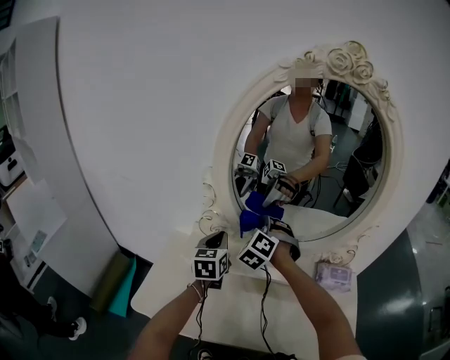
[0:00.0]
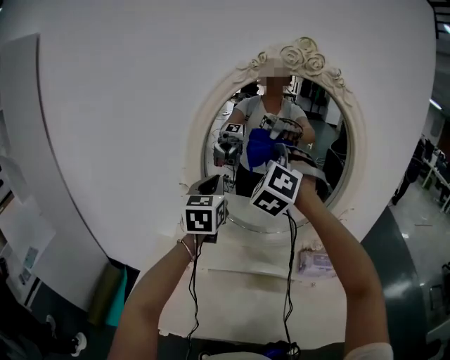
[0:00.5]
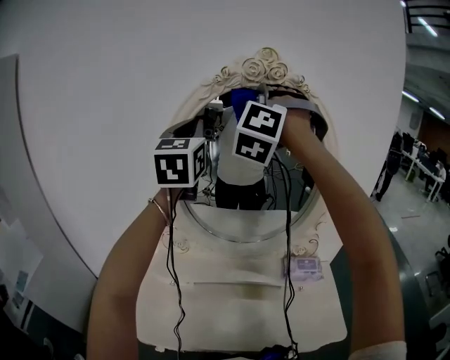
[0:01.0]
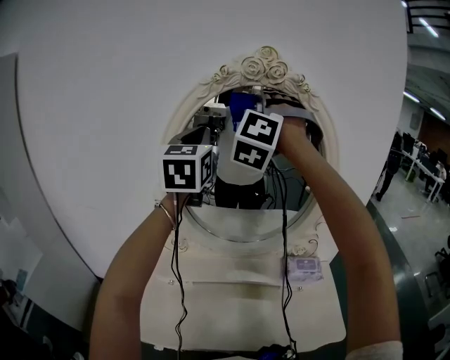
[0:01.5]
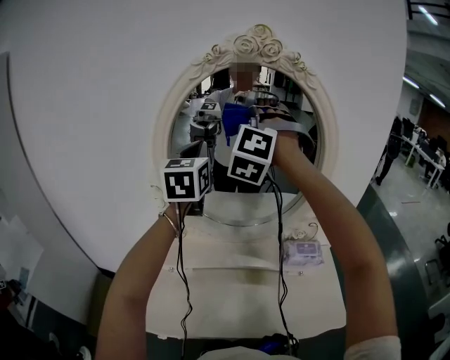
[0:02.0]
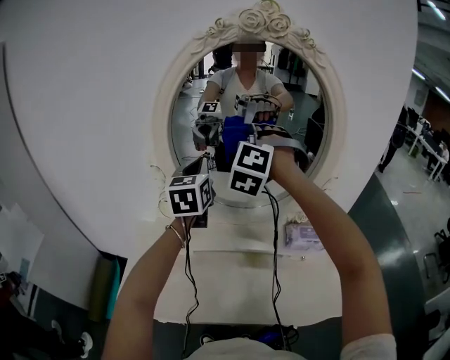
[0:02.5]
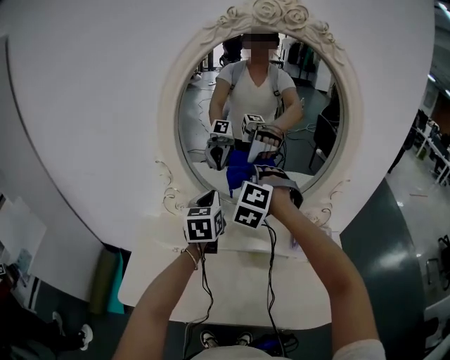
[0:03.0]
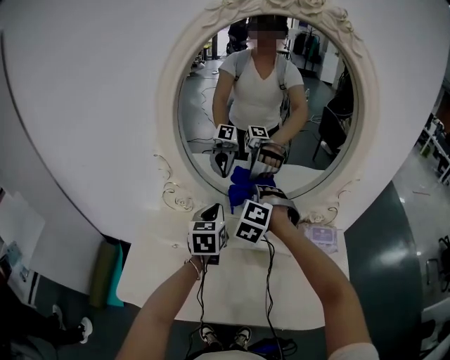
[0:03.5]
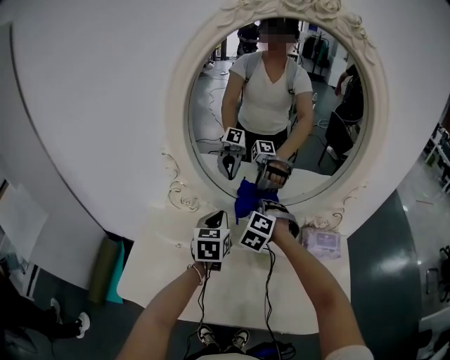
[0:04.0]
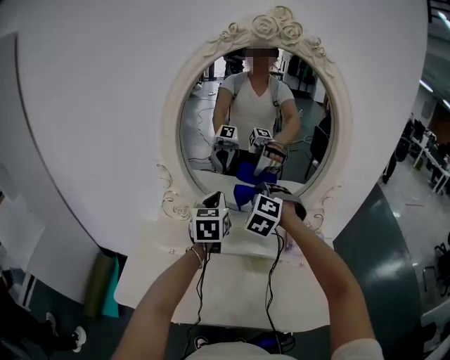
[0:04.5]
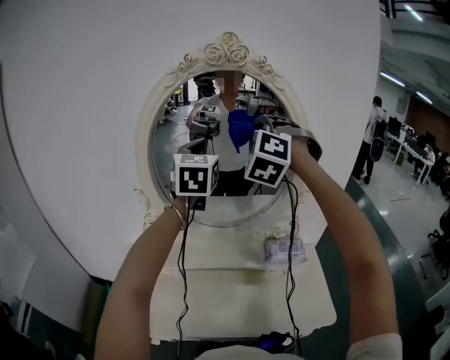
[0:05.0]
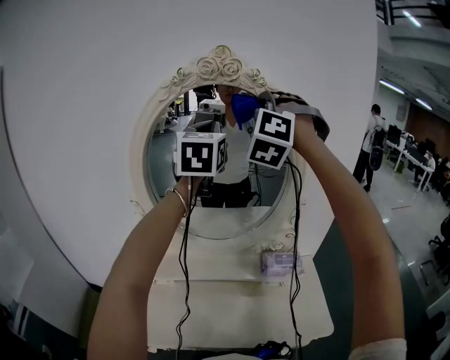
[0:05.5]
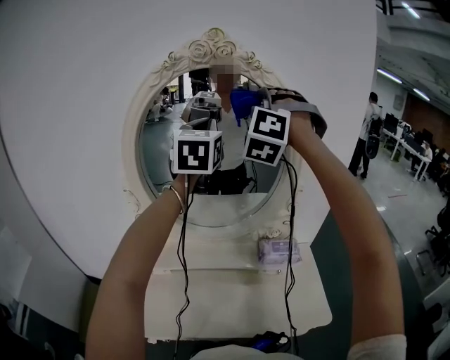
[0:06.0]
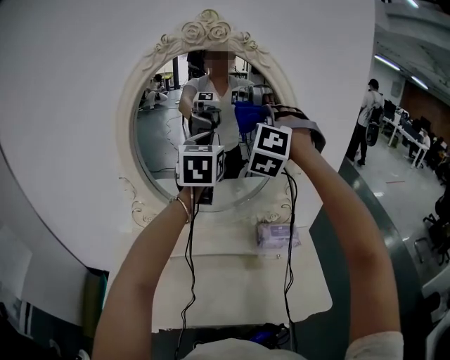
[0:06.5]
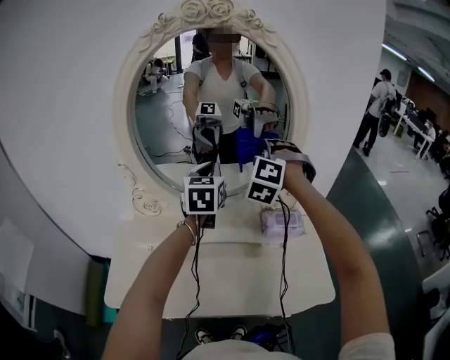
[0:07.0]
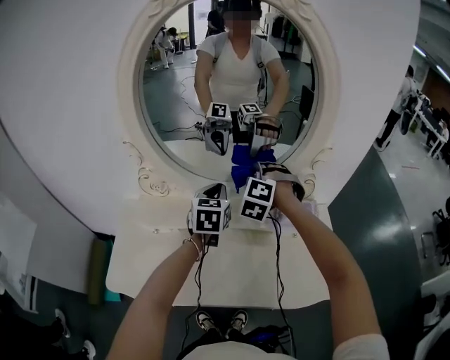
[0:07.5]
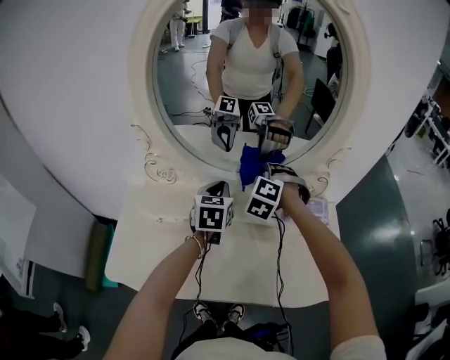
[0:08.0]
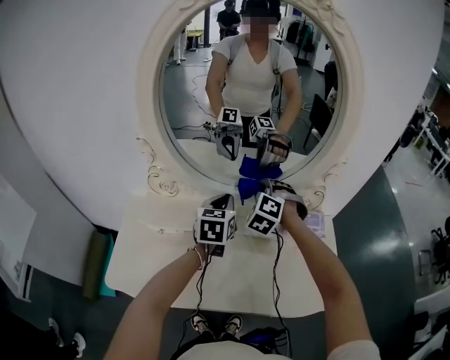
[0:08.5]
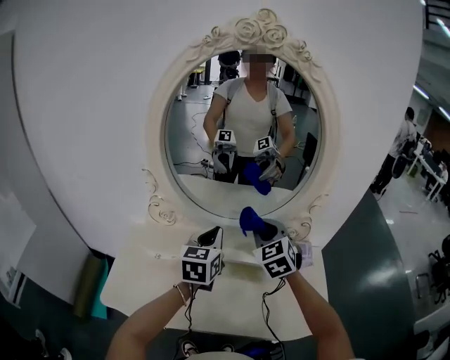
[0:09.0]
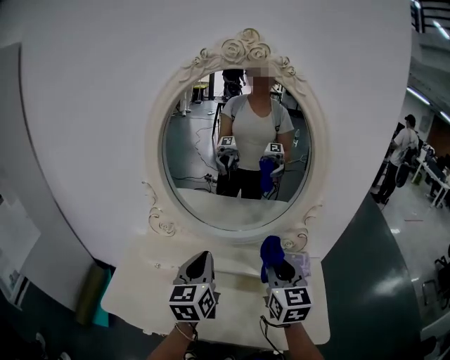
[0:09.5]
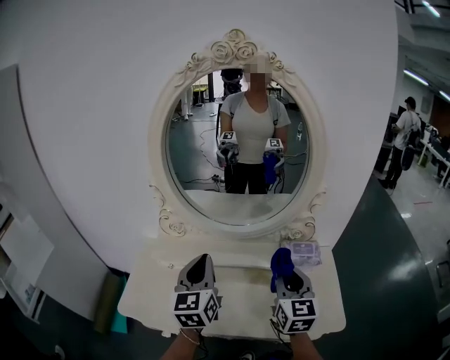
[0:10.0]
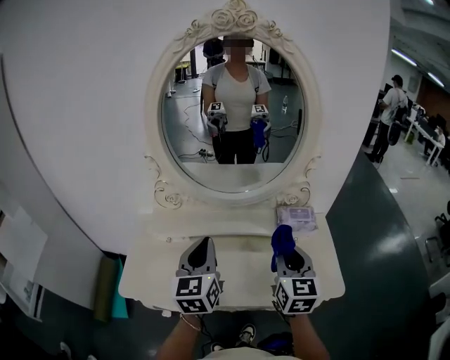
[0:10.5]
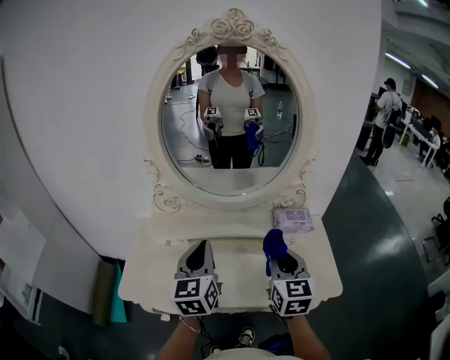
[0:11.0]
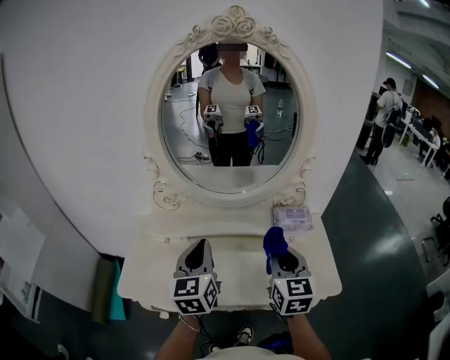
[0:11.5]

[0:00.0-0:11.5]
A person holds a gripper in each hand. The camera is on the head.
0:00.0 to 0:02.0: Both grippers travel together upward, about 30 cm. The left gripper changes its angle by approximately 20 degrees; the right gripper turns by about 30 degrees.
0:02.0 to 0:04.0: Both grippers travel together downward, roughly 40 cm. The left gripper turns by approximately 30 degrees. The right gripper tips its fingers downward by some 40 degrees.
0:04.0 to 0:06.0: Both grippers travel together upward, about 40 cm. The right gripper tips its fingers upward by some 40 degrees. The left gripper turns by some 30 degrees.
0:06.0 to 0:07.5: Both grippers travel together downward, about 40 cm. The left gripper changes its angle by roughly 30 degrees, while the right gripper angles its fingers downward, by approximately 40 degrees.
0:07.5 to 0:09.5: The right gripper shifts about 20 cm backward, upward and to the right, and rolls clockwise, seen from behind, by approximately 70 degrees, while the left gripper moves backward and upward, some 15 cm, and turns by some 20 degrees.
0:09.5 to 0:11.5: The grippers both shift backward by roughly 10 cm.

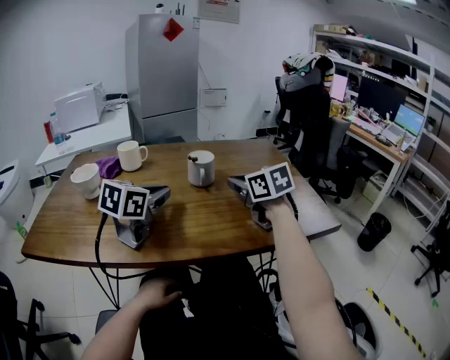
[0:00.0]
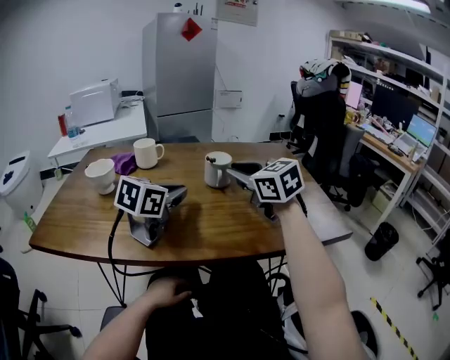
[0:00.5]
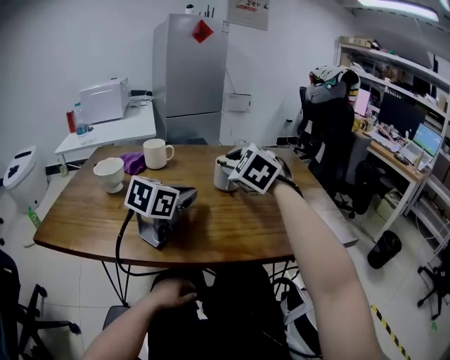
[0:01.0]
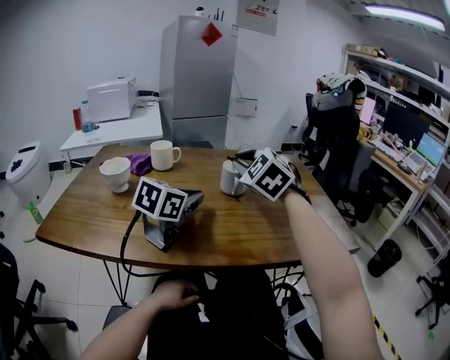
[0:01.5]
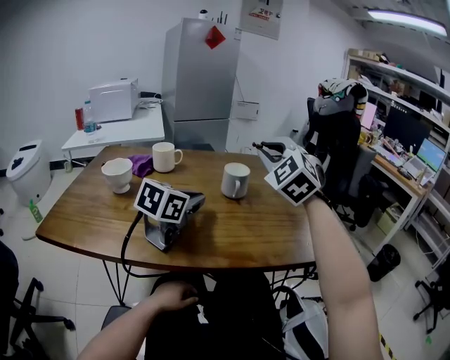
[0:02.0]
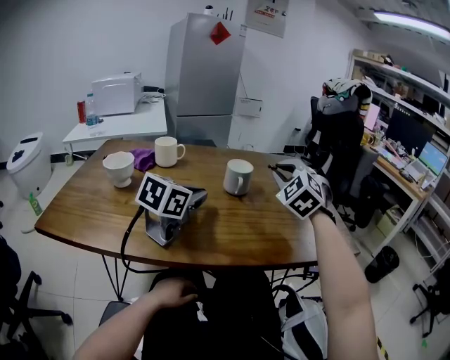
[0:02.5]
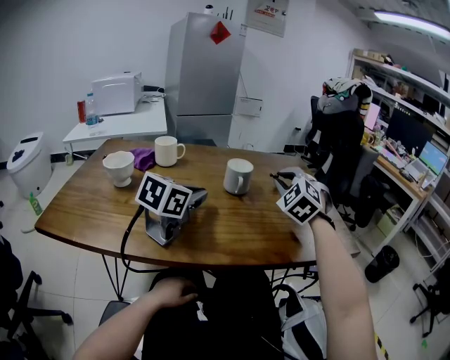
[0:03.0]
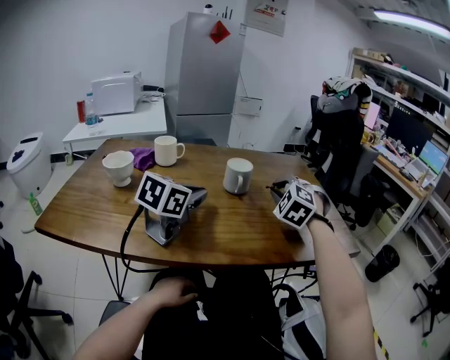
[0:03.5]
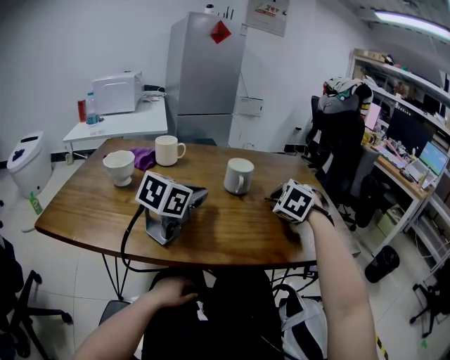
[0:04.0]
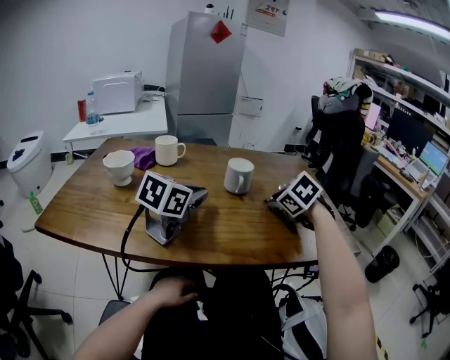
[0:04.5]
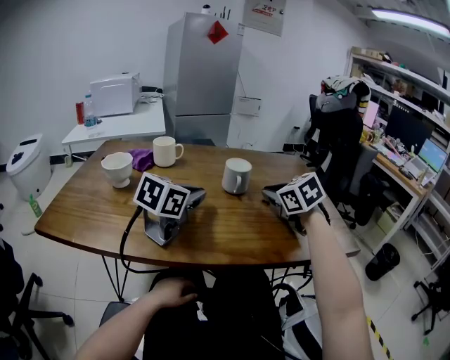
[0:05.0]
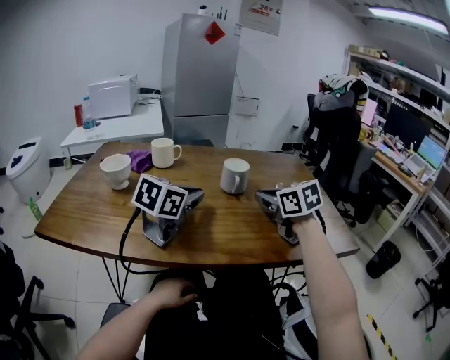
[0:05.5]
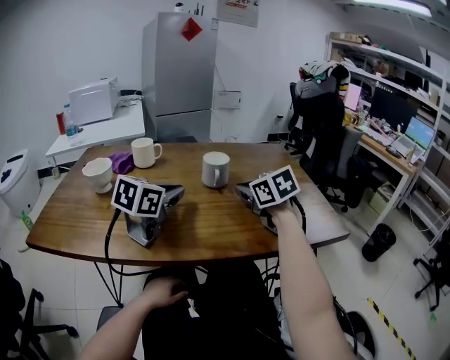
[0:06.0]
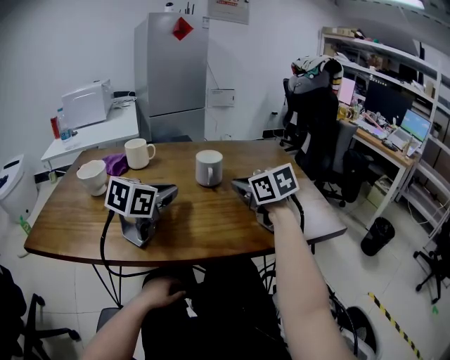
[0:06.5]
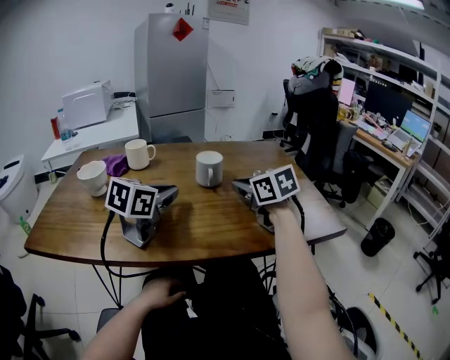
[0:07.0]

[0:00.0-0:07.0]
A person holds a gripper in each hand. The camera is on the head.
0:00.0 to 0:02.0: The right gripper moves upward, about 15 cm, and rolls counterclockwise, seen from behind, by roughly 60 degrees.
0:02.0 to 0:03.5: The right gripper moves downward and to the right, some 15 cm, and changes its angle by some 20 degrees.
0:03.5 to 0:05.0: The right gripper twists approximately 40 degrees clockwise, seen from behind.
0:05.0 to 0:07.0: The grippers make only small movements.

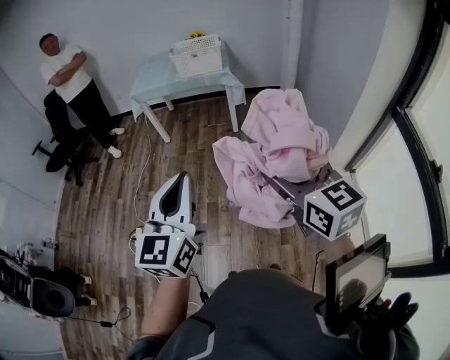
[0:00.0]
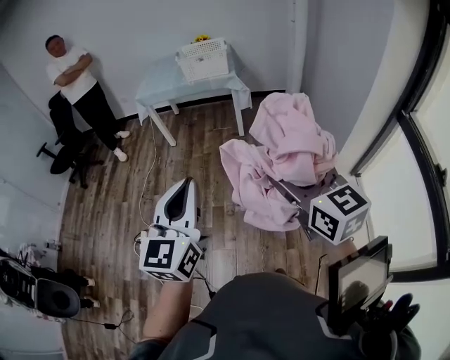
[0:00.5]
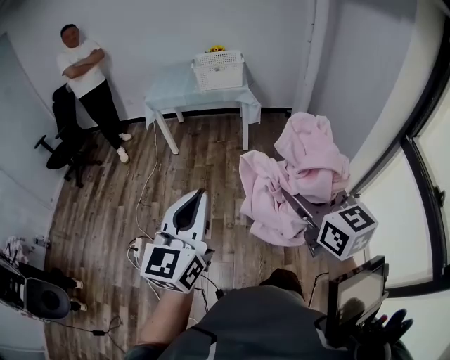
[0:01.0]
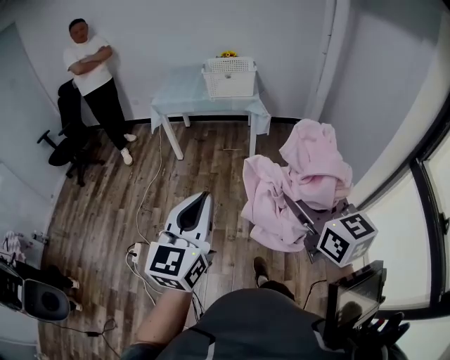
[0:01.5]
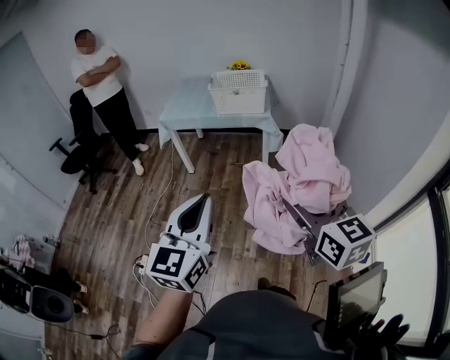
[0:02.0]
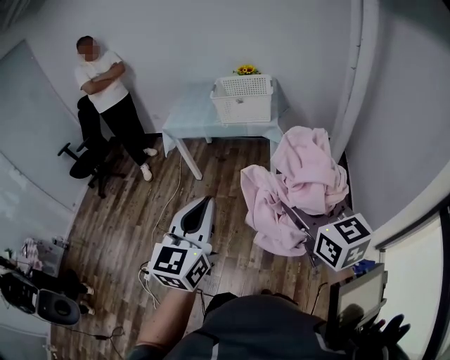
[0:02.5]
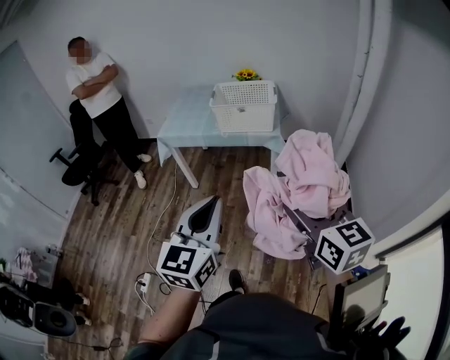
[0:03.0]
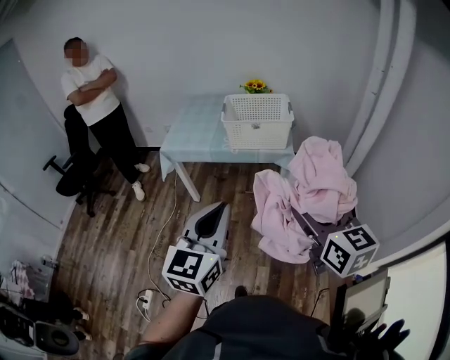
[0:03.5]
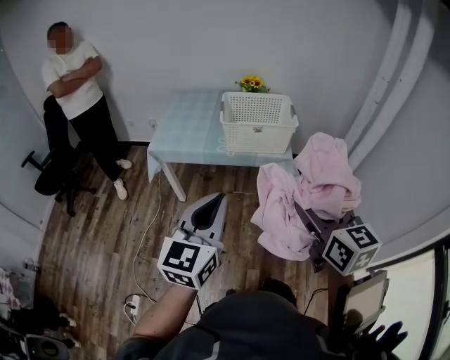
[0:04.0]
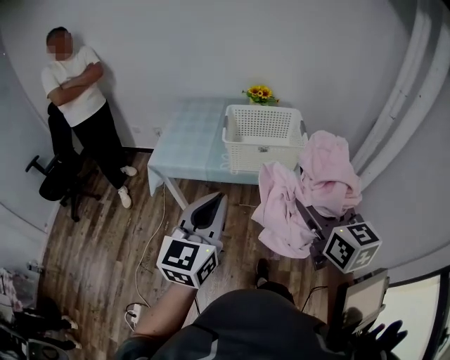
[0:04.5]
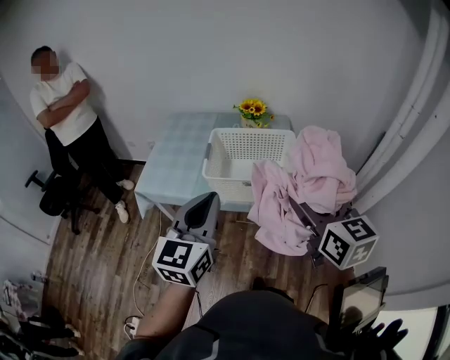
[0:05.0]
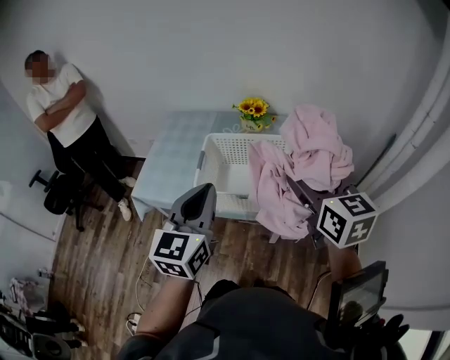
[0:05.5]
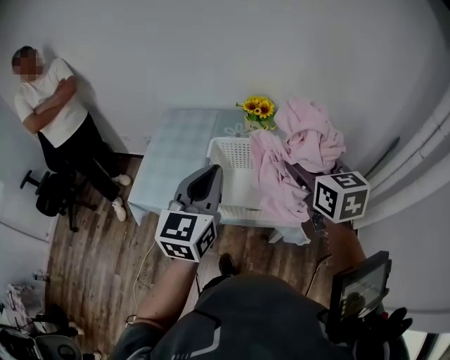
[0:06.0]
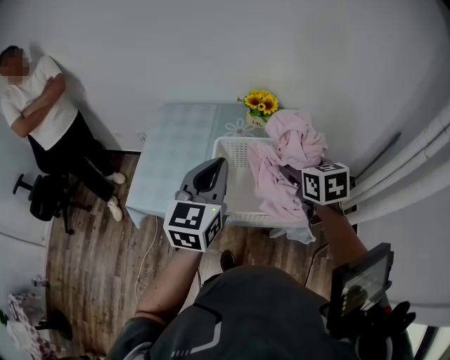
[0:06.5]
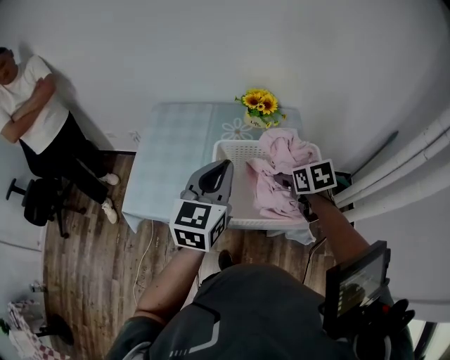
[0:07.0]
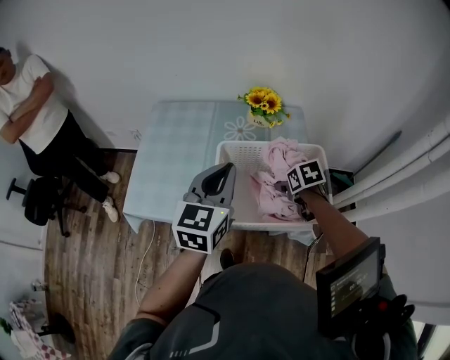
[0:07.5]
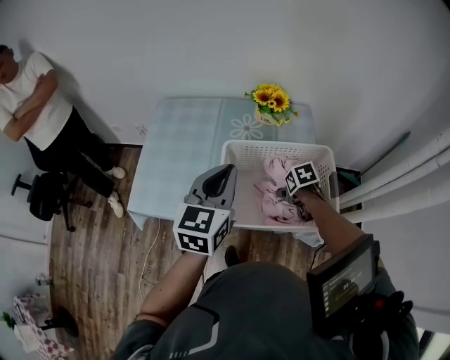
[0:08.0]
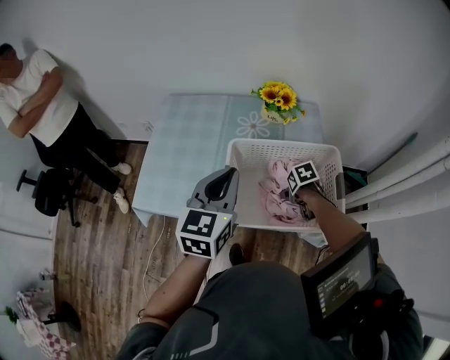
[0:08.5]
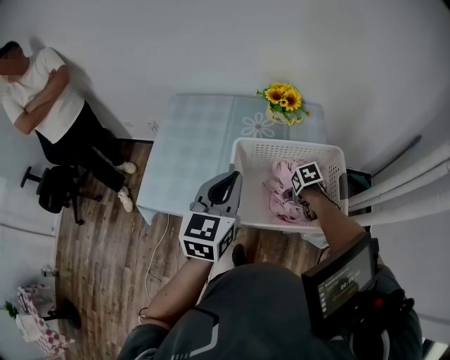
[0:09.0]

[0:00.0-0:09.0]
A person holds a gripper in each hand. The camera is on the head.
0:02.0 to 0:04.5: Both grippers are carried forward, some 50 cm.
0:04.5 to 0:07.0: The two grippers travel together, forward, roughly 40 cm. The right gripper goes roughly 20 cm downward, and angles its fingers downward, by roughly 40 degrees.
0:07.0 to 0:09.0: The right gripper moves downward, approximately 20 cm, and turns by roughly 30 degrees.
